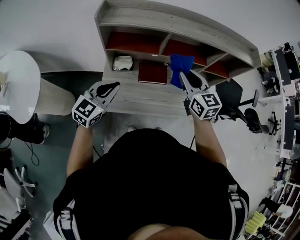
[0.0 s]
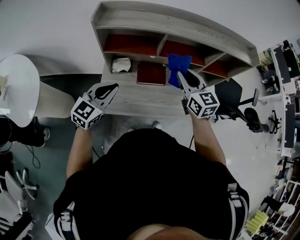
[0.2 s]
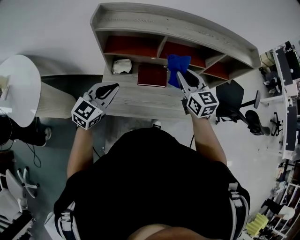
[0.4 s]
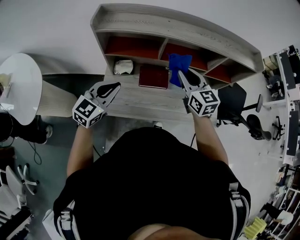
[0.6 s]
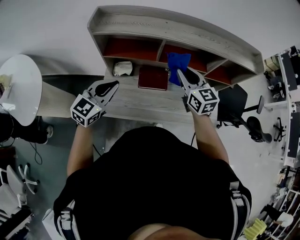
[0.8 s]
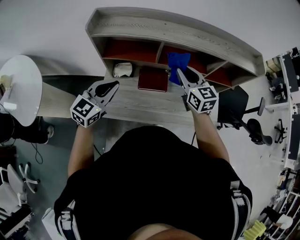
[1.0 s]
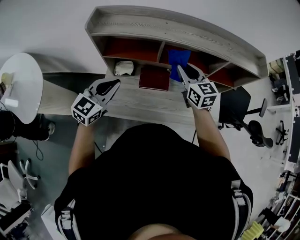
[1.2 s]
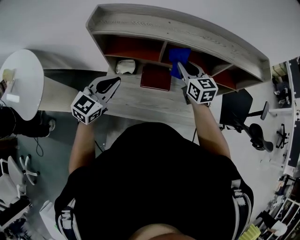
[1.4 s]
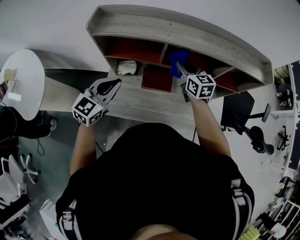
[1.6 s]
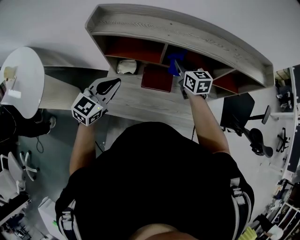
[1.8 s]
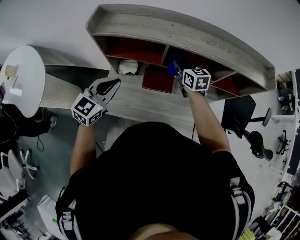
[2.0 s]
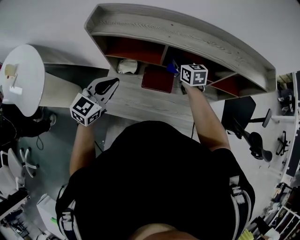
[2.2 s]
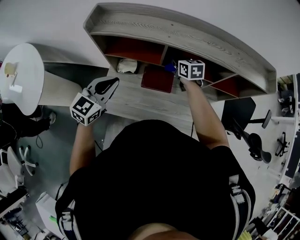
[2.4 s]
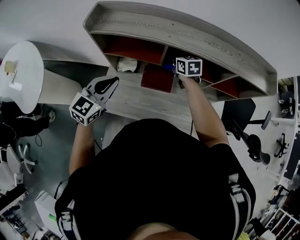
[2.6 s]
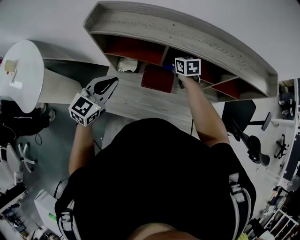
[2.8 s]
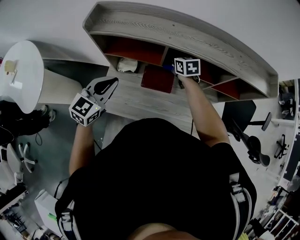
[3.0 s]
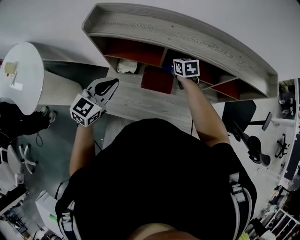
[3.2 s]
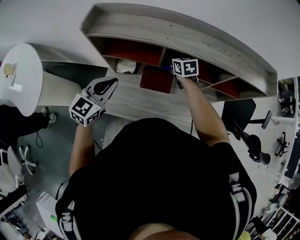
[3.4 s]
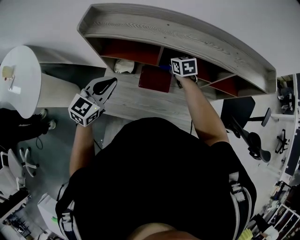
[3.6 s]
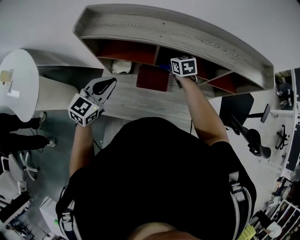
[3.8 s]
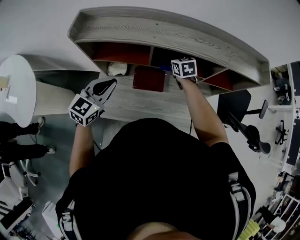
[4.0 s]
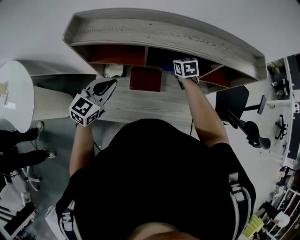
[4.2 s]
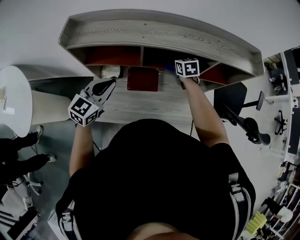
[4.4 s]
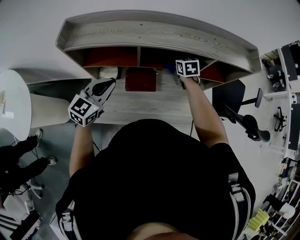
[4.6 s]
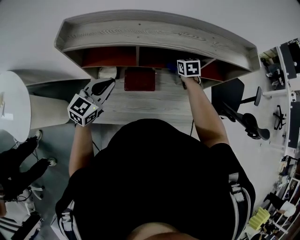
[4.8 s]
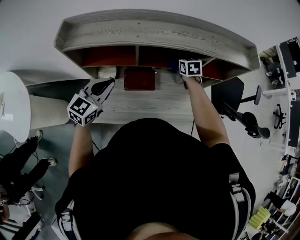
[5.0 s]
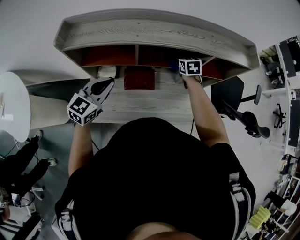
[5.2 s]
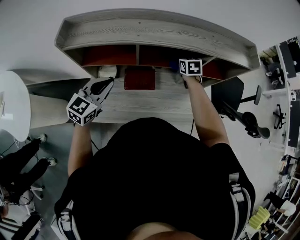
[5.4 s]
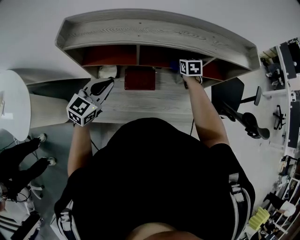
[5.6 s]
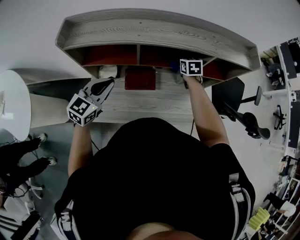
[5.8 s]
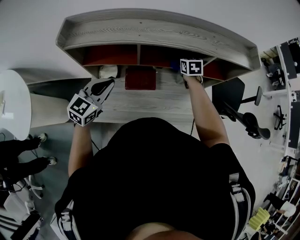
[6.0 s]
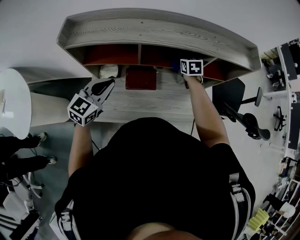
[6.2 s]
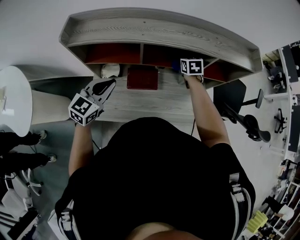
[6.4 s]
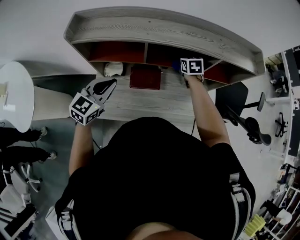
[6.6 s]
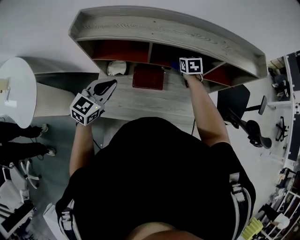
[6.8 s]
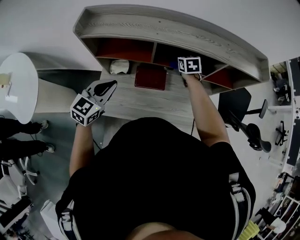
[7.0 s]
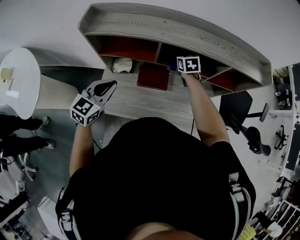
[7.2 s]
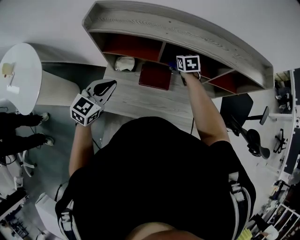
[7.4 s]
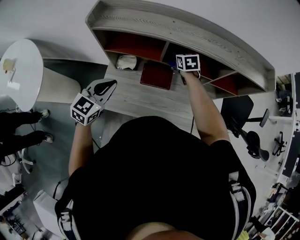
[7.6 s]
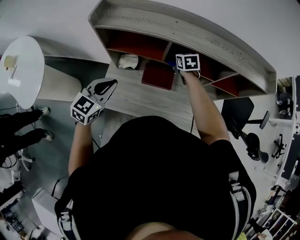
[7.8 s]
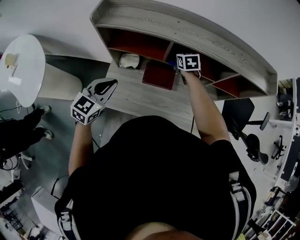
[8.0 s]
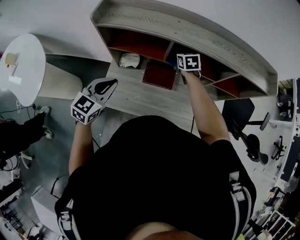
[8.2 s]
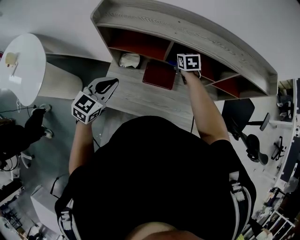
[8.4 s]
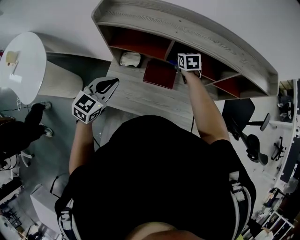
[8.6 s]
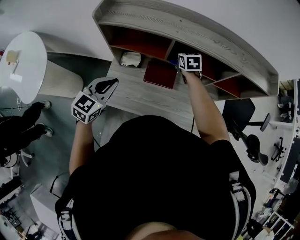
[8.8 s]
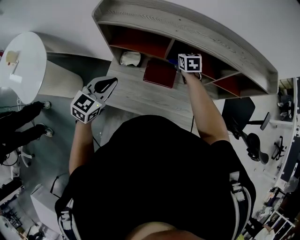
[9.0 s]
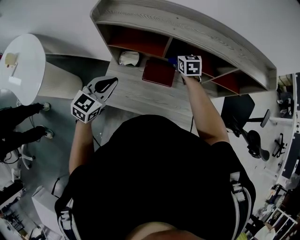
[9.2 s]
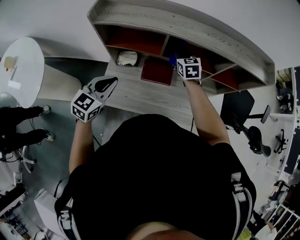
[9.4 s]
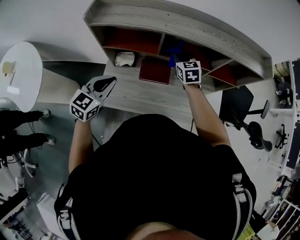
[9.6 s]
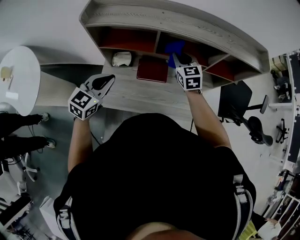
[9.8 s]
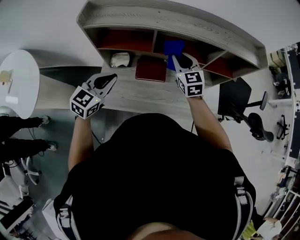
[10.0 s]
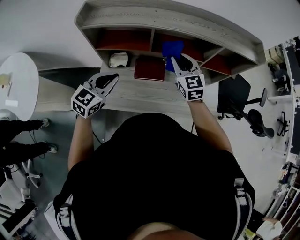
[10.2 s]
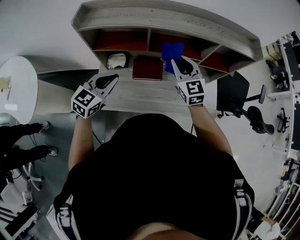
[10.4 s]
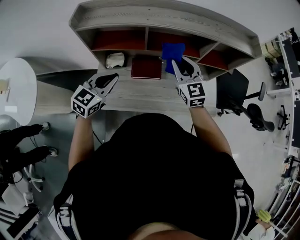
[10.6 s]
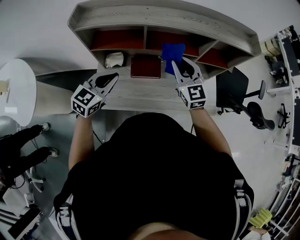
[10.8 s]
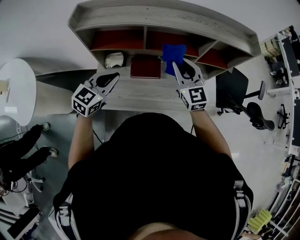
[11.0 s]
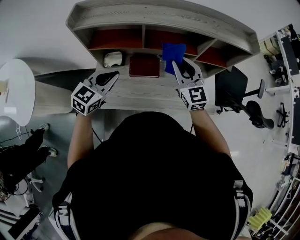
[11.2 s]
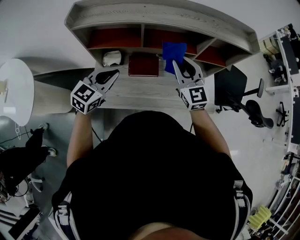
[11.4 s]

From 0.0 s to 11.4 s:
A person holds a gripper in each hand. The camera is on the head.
From 0.0 s to 1.4 s: The right gripper moves forward, about 10 cm. The left gripper goes approximately 5 cm forward.
From 1.4 s to 2.8 s: The right gripper is displaced downward and forward by some 15 cm, and changes its angle by about 20 degrees.
From 2.8 s to 4.2 s: The right gripper travels to the right by approximately 10 cm; the left gripper shifts by about 5 cm.
From 4.2 s to 5.6 s: The right gripper goes approximately 10 cm to the right.
From 5.6 s to 7.2 s: The right gripper travels to the left by approximately 10 cm, while the left gripper goes roughly 5 cm backward.
From 7.2 s to 8.6 s: The right gripper travels to the left by some 5 cm.
From 8.6 s to 10.0 s: The right gripper shifts some 15 cm backward and upward, and rotates approximately 20 degrees.
From 10.0 s to 11.4 s: The right gripper shifts roughly 5 cm backward.

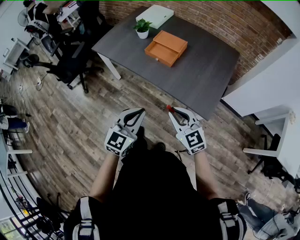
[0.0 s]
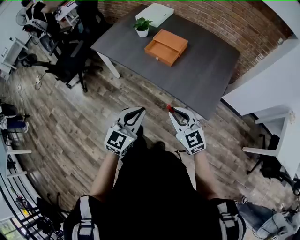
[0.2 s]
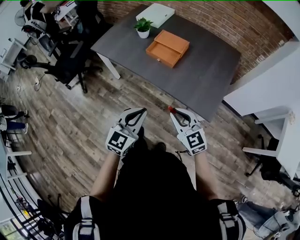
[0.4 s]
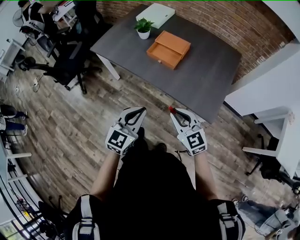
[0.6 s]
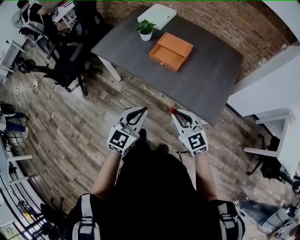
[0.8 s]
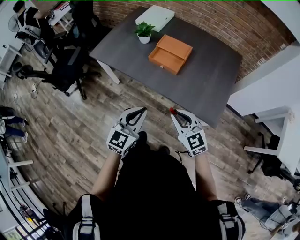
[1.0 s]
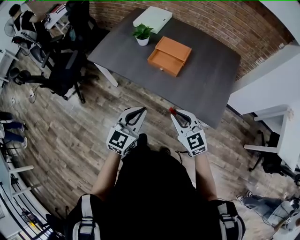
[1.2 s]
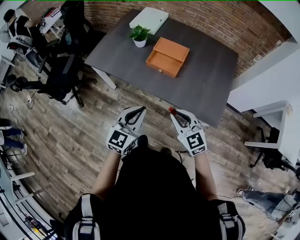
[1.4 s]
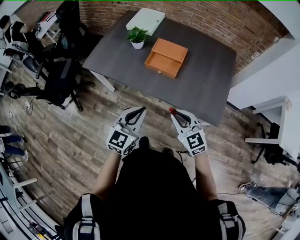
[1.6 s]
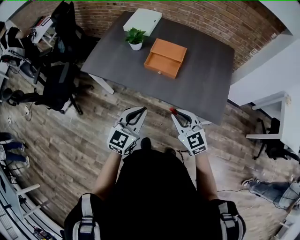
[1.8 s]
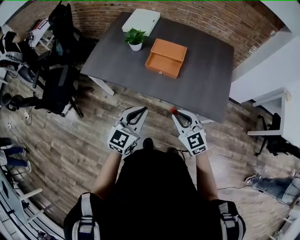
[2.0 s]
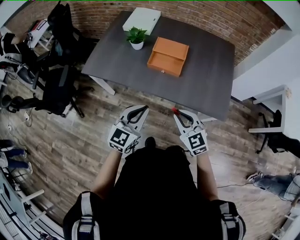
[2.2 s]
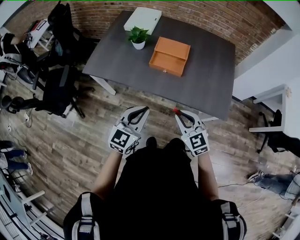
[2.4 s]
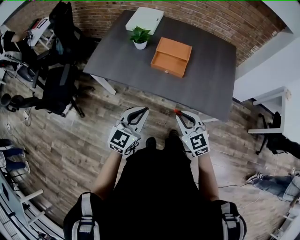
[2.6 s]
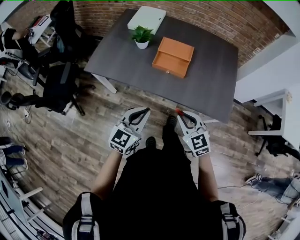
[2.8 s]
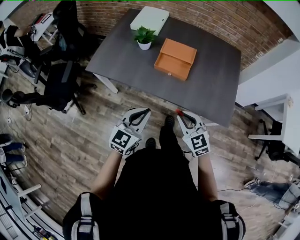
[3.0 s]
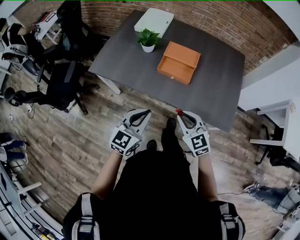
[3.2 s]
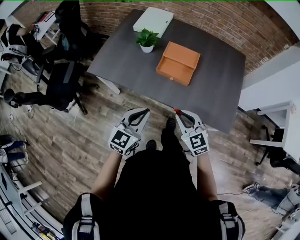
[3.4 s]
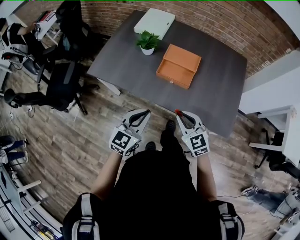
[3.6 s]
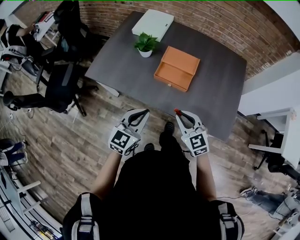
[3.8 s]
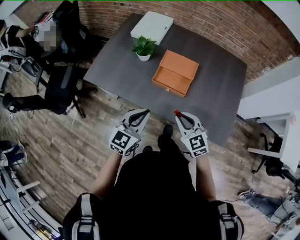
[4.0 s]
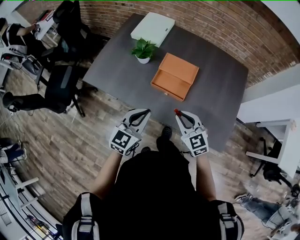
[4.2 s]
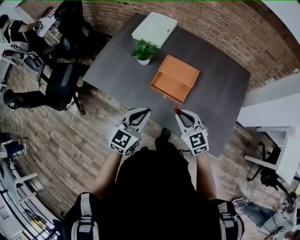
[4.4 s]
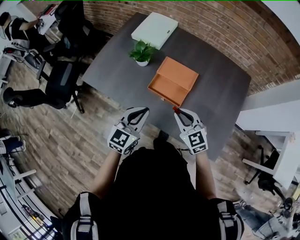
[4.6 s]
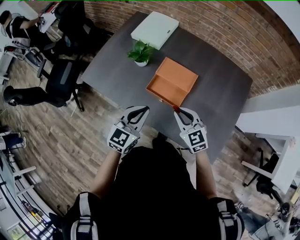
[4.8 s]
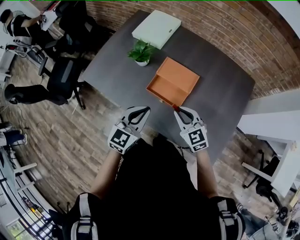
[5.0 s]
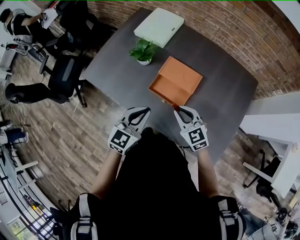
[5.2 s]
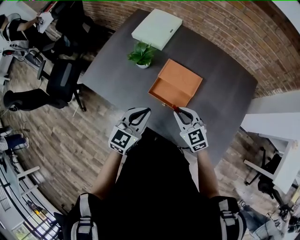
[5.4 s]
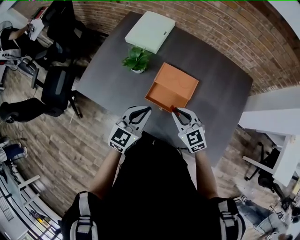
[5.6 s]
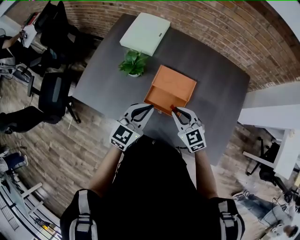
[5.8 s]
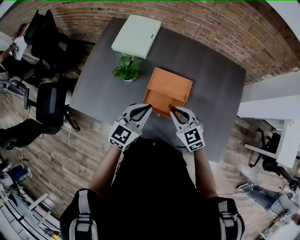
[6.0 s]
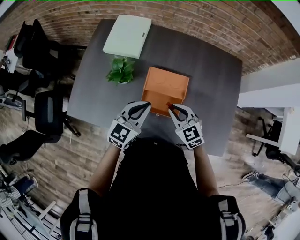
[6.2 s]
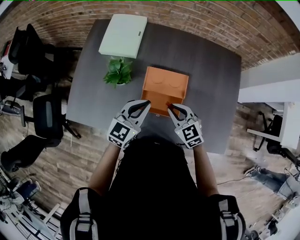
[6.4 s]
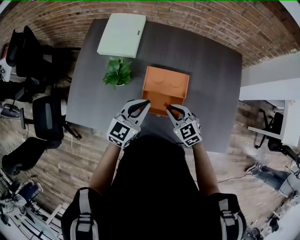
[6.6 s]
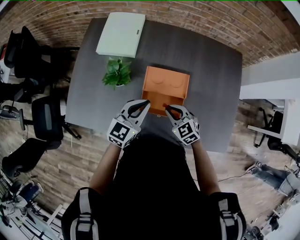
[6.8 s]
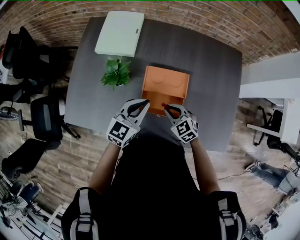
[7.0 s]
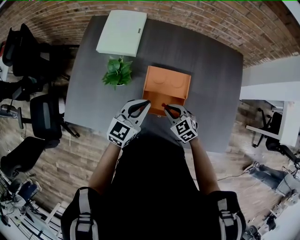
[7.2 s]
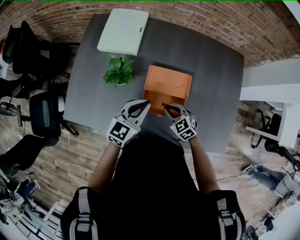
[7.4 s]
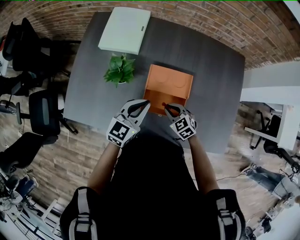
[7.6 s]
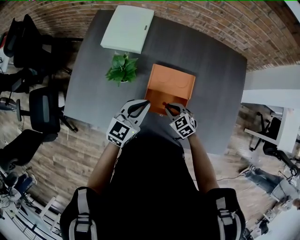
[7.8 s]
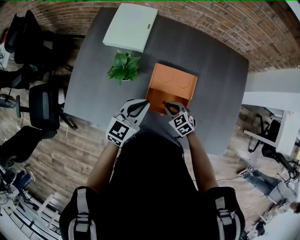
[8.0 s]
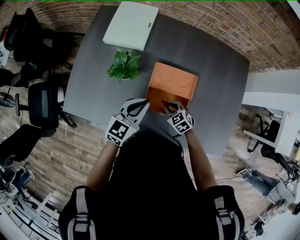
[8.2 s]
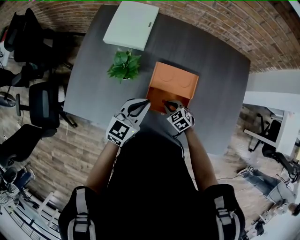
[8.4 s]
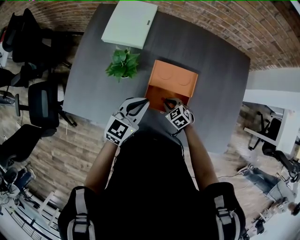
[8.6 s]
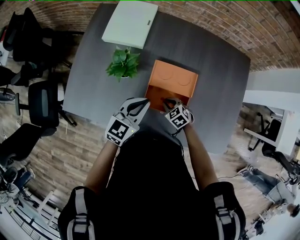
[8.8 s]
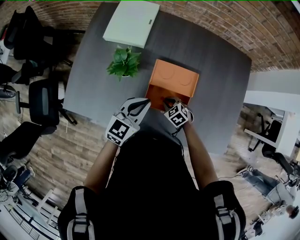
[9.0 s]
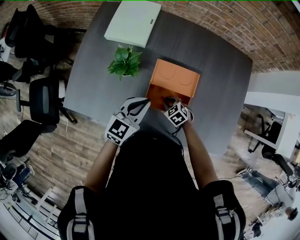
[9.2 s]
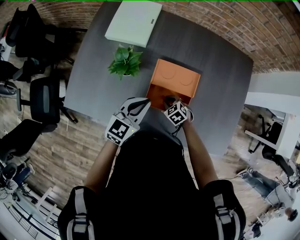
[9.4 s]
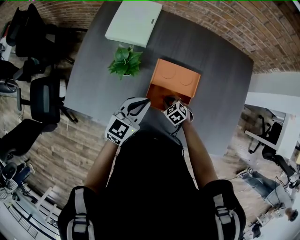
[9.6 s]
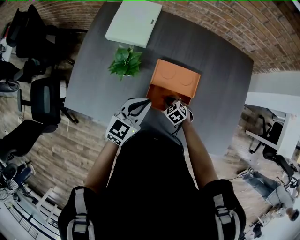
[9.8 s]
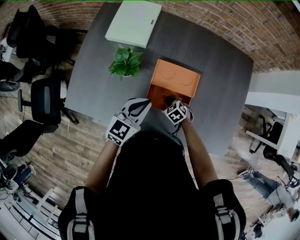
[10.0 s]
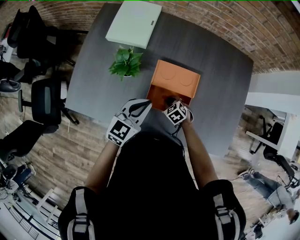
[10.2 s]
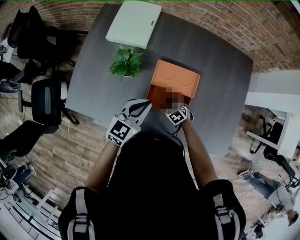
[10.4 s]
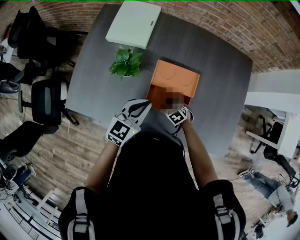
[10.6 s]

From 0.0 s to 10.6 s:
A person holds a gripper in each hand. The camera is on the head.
From 0.0 s to 1.6 s: Both grippers move forward and to the left, approximately 20 cm.
From 1.6 s to 3.0 s: The grippers both shift to the left by about 5 cm.
From 3.0 s to 4.6 s: The grippers both shift forward by about 20 cm.
From 4.6 s to 6.0 s: Both grippers move forward, some 15 cm.
From 6.0 s to 7.6 s: The left gripper shifts some 10 cm forward and downward; the right gripper is displaced downward by approximately 15 cm.
From 7.6 s to 9.0 s: The right gripper shifts about 10 cm downward.
From 9.0 s to 10.6 s: The grippers move only a little.

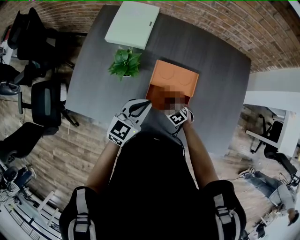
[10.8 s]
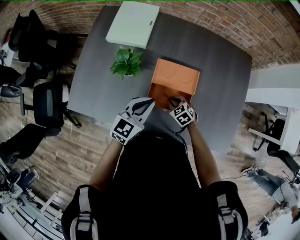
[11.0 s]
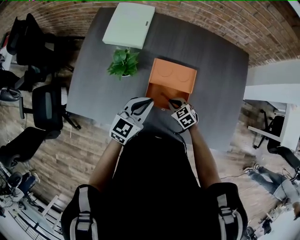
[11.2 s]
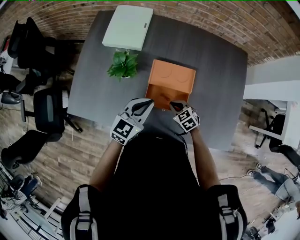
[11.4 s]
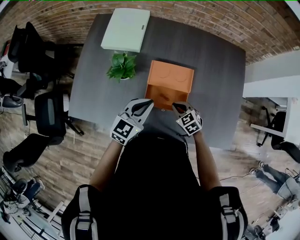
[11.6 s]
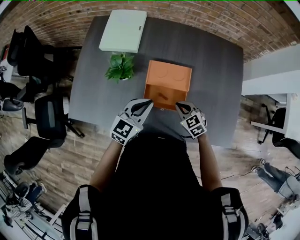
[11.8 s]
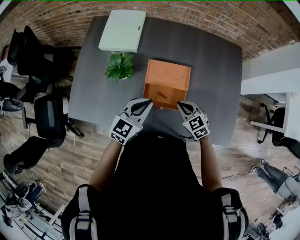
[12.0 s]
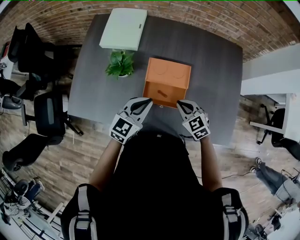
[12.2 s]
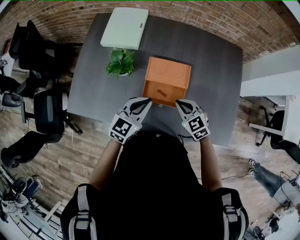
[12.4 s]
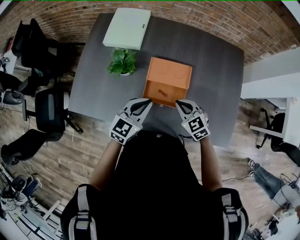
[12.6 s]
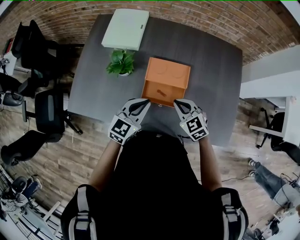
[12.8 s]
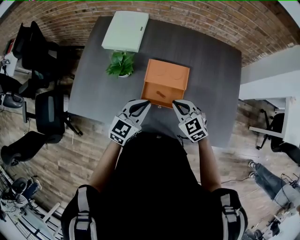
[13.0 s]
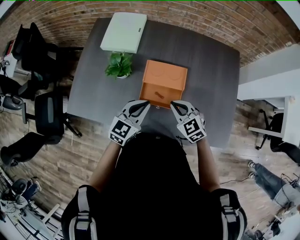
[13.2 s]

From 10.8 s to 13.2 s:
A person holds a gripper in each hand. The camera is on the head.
From 10.8 s to 12.0 s: The right gripper shifts approximately 15 cm upward and to the right, and swivels about 20 degrees.
From 12.0 s to 13.2 s: The right gripper shifts some 5 cm upward.
